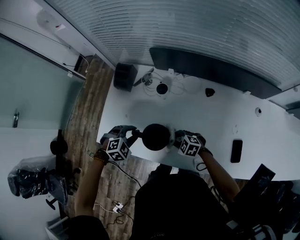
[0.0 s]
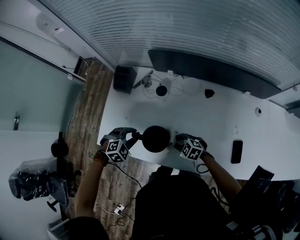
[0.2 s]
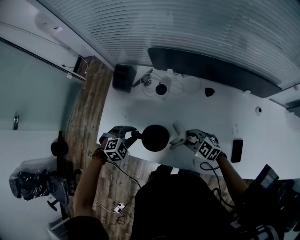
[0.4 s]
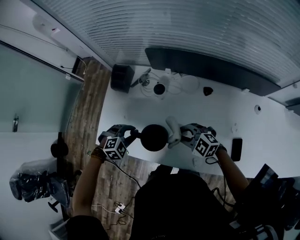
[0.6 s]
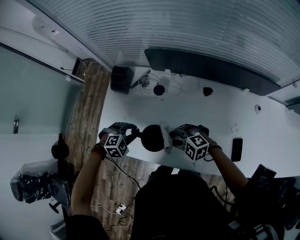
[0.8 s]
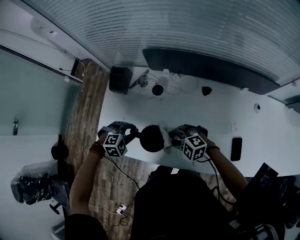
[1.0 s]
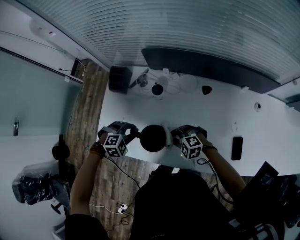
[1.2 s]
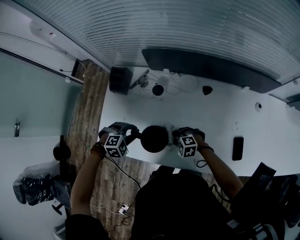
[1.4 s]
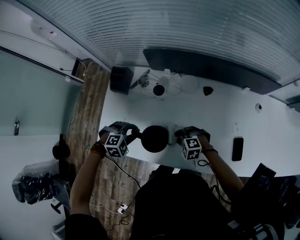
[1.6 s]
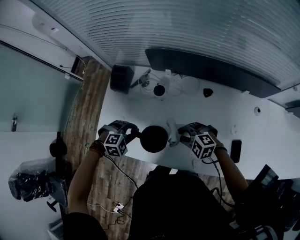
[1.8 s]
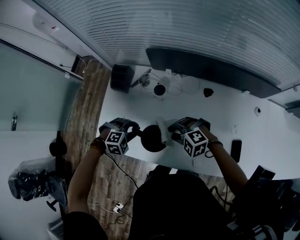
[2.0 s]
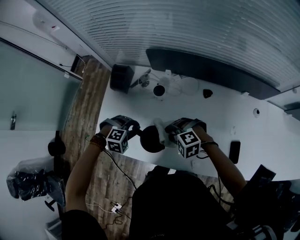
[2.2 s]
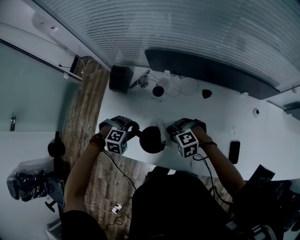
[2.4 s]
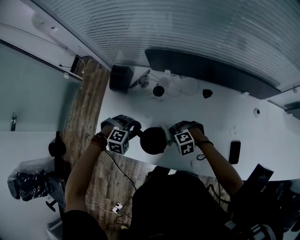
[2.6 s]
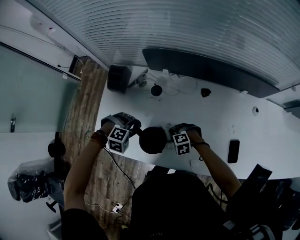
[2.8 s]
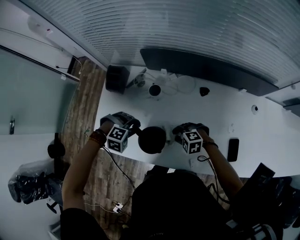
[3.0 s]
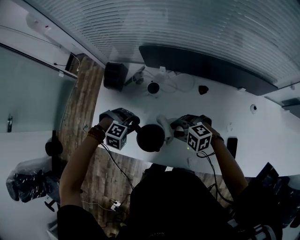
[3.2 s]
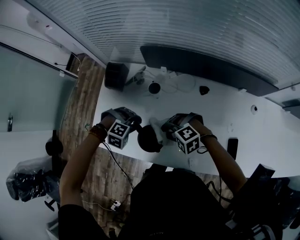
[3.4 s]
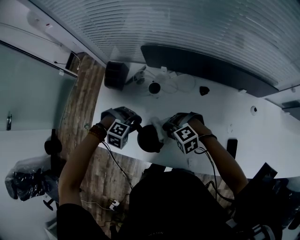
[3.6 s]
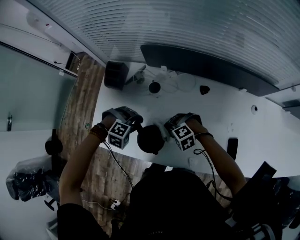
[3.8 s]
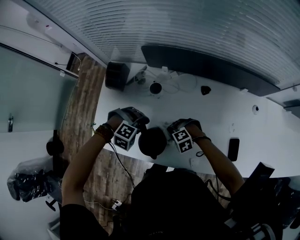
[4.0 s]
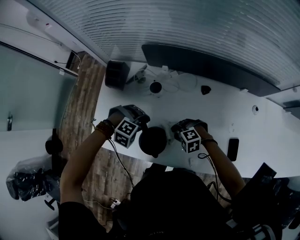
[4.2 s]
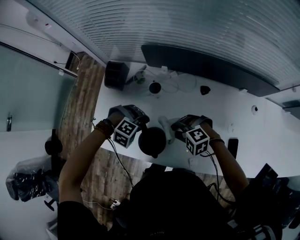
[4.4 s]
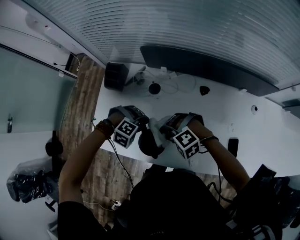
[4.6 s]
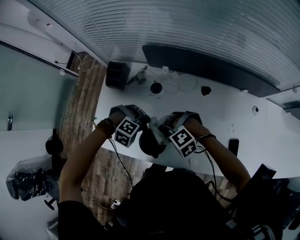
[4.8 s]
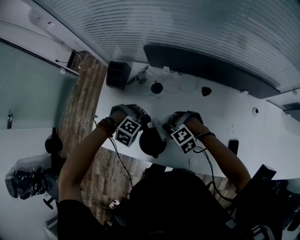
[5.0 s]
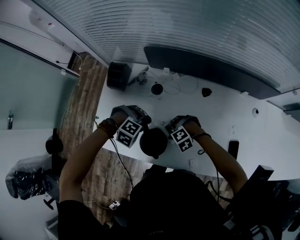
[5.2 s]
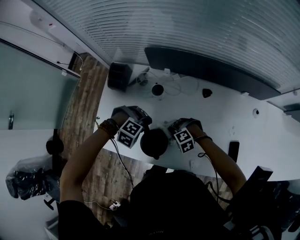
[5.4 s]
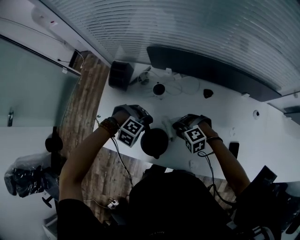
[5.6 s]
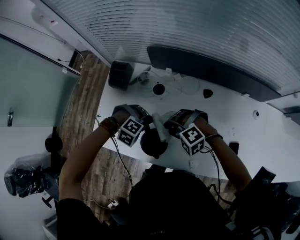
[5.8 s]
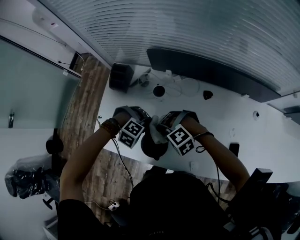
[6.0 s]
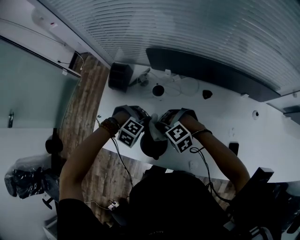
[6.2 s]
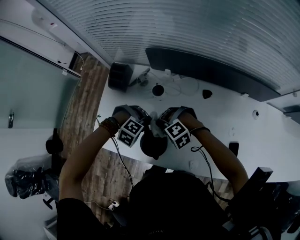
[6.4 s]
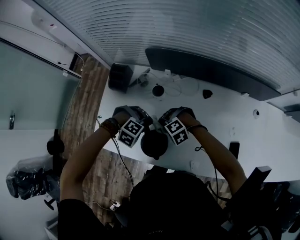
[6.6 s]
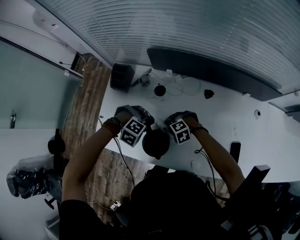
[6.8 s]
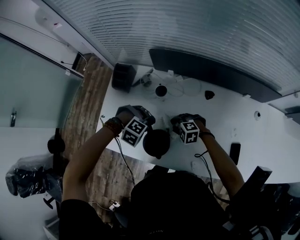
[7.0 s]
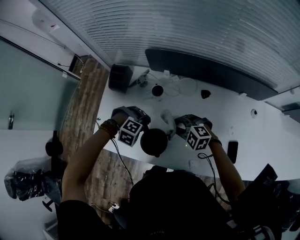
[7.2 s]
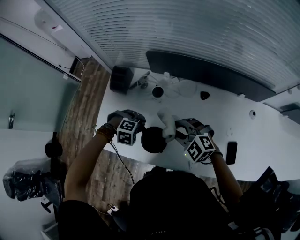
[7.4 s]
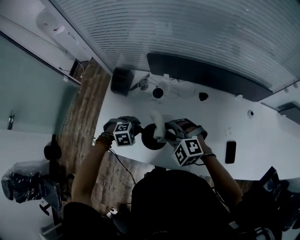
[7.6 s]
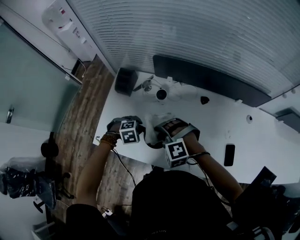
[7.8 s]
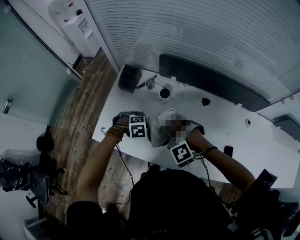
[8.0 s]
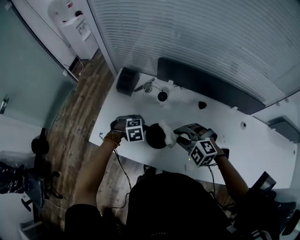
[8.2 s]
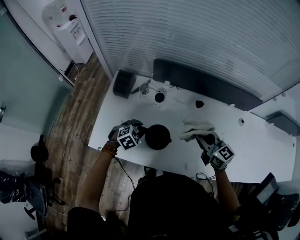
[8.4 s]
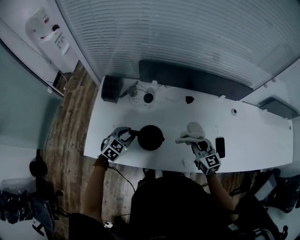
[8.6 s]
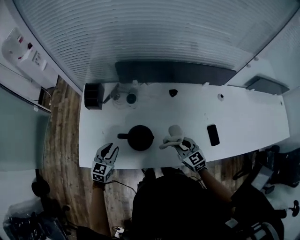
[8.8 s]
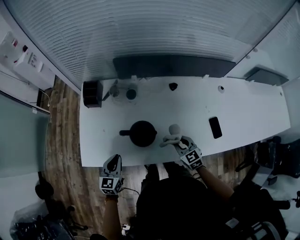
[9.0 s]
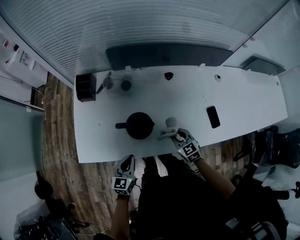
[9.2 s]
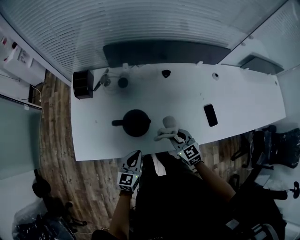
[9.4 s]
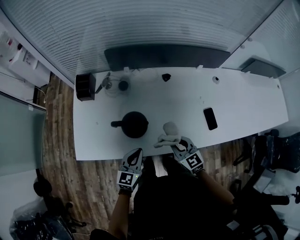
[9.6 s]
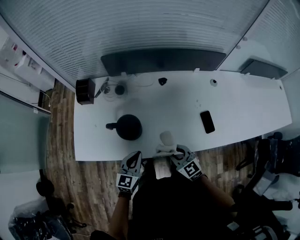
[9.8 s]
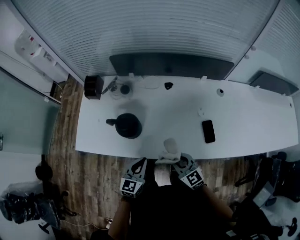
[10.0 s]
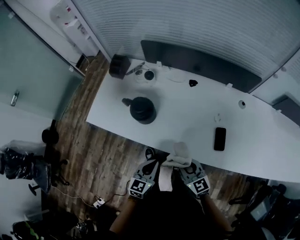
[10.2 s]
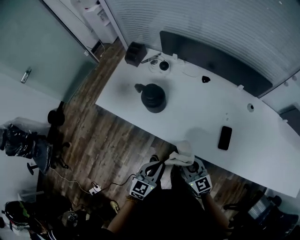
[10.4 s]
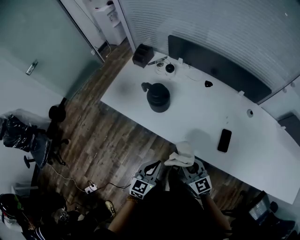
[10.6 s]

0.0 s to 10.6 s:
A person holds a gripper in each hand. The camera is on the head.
0.0 to 1.6 s: The right gripper moves some 10 cm upward and comes back, and changes its angle by approximately 20 degrees.
1.6 to 3.0 s: The right gripper moves up and down over roughly 15 cm, changing direction 2 times.
3.0 to 4.6 s: The right gripper moves up and down over some 15 cm, changing direction 2 times, and changes its angle by about 30 degrees.
4.6 to 6.0 s: The right gripper travels downward and back again, roughly 15 cm each way.
6.0 to 7.6 s: The left gripper changes place by roughly 5 cm, and rotates some 40 degrees. Meanwhile the right gripper goes roughly 10 cm upward, and rotates about 40 degrees.
7.6 to 9.0 s: The left gripper changes place by about 15 cm, and tips its fingers upward by roughly 50 degrees. The right gripper ends up approximately 20 cm from where it was, and twists roughly 50 degrees clockwise, seen from behind.
9.0 to 10.6 s: The left gripper shifts by about 40 cm. The right gripper ends up about 25 cm from where it was, and changes its angle by roughly 30 degrees.

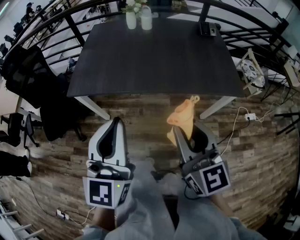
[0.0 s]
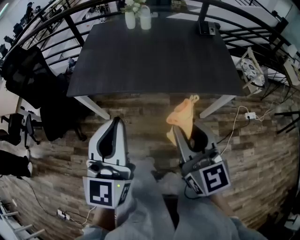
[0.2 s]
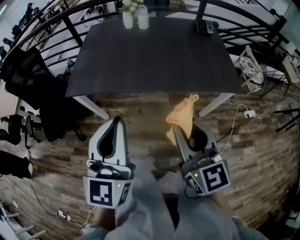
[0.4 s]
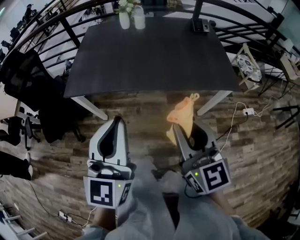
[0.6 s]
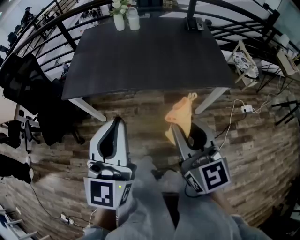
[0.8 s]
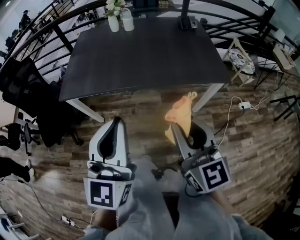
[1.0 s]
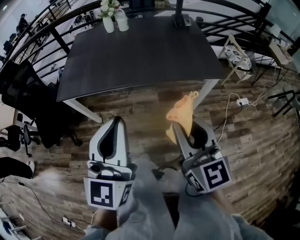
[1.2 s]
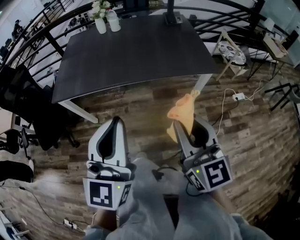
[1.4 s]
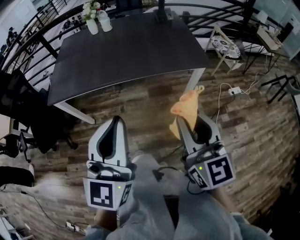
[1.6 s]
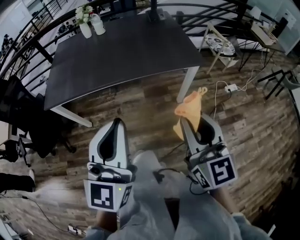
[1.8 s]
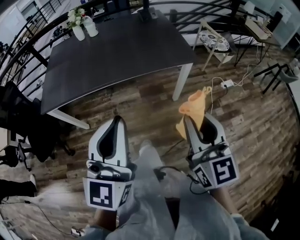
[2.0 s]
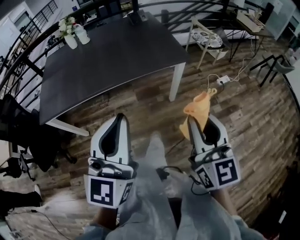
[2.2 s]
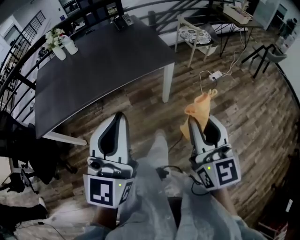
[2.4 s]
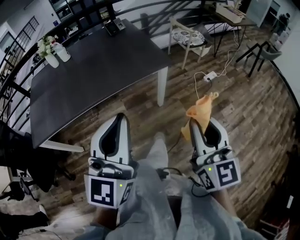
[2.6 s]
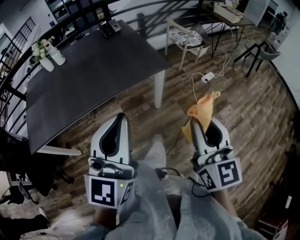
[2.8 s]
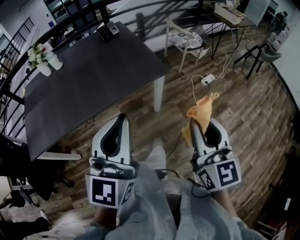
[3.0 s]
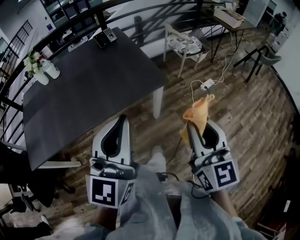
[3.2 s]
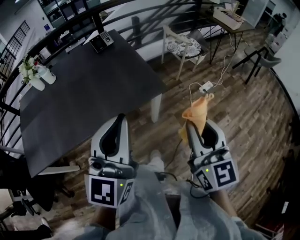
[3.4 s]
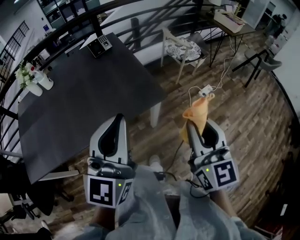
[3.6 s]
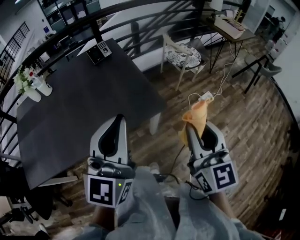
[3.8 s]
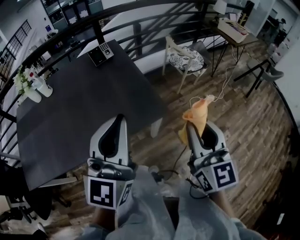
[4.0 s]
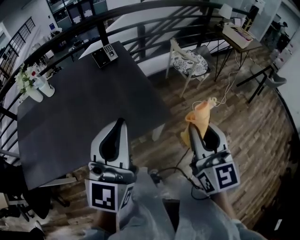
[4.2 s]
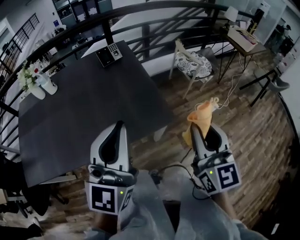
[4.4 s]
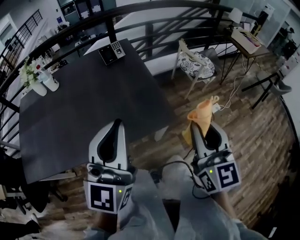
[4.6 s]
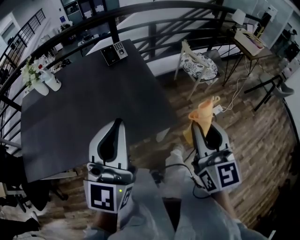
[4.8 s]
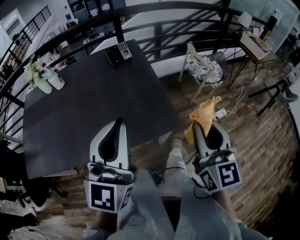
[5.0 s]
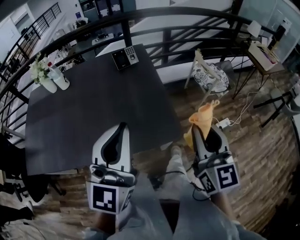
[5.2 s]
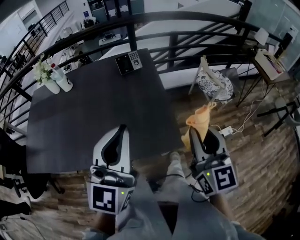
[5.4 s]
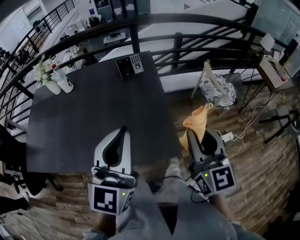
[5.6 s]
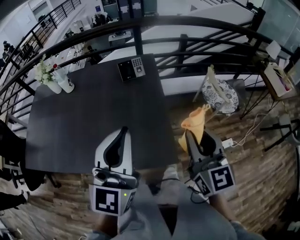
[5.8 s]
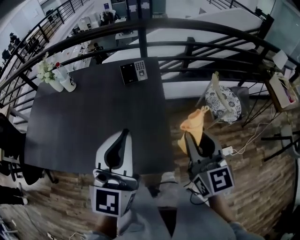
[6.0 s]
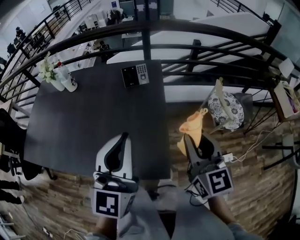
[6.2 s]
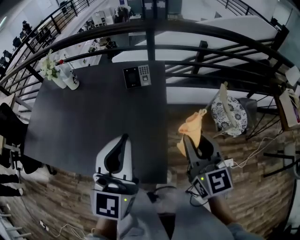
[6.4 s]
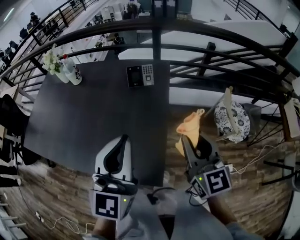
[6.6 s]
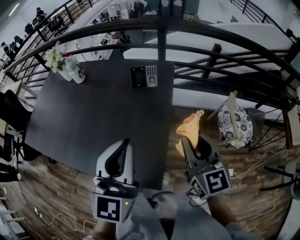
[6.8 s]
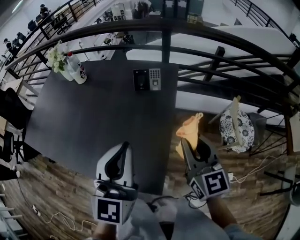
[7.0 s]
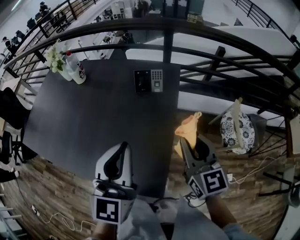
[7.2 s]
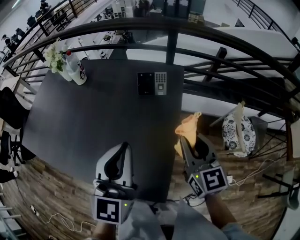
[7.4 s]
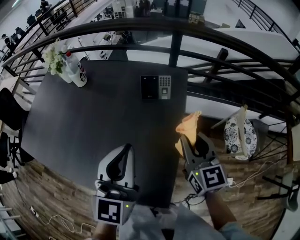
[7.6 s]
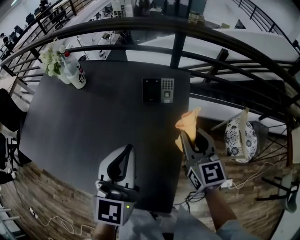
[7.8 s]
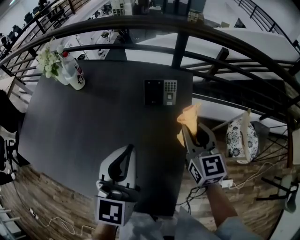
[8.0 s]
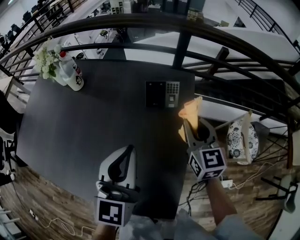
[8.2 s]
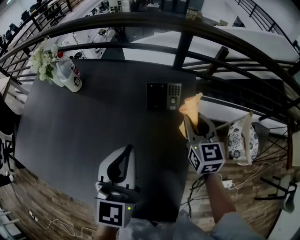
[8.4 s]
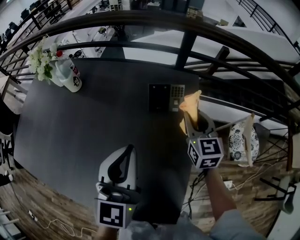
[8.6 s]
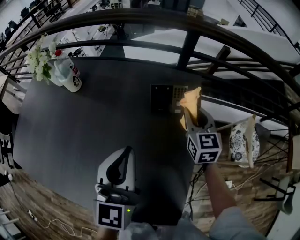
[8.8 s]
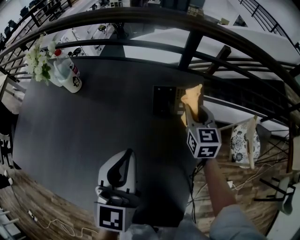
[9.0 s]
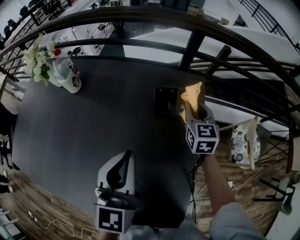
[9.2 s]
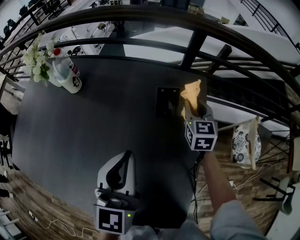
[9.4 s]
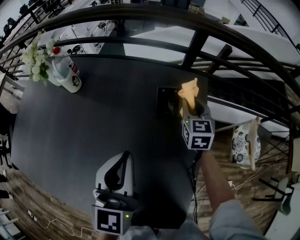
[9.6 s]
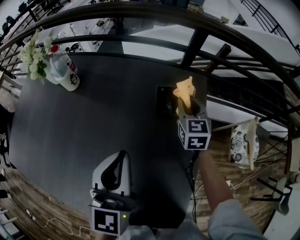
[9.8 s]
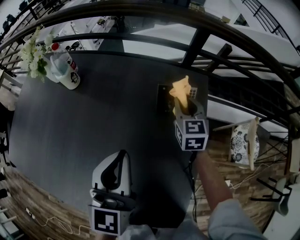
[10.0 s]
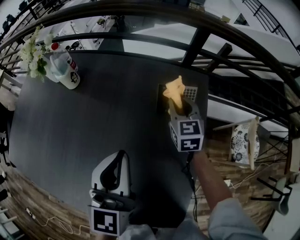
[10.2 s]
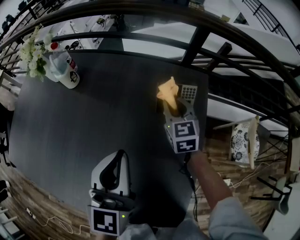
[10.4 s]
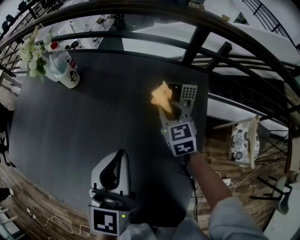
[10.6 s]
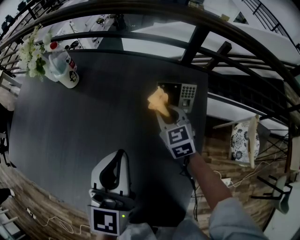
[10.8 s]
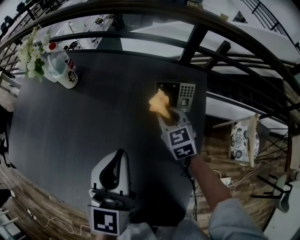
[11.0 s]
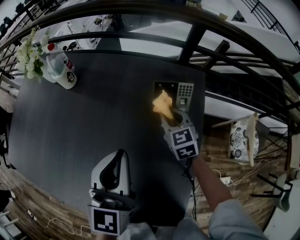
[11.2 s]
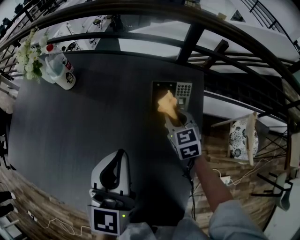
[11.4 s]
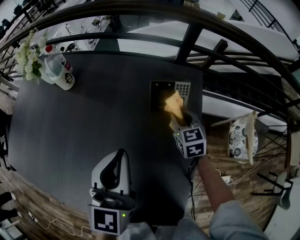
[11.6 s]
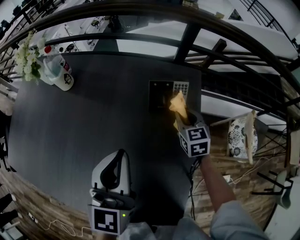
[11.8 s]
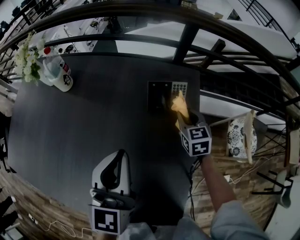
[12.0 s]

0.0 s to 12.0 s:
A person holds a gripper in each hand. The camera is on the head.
0.0 to 1.6 s: The two grippers go roughly 20 cm to the right and backward.
1.6 to 3.0 s: The grippers both shift to the right and forward by about 20 cm. The right gripper swivels some 20 degrees, while the left gripper changes its angle by roughly 20 degrees.
3.0 to 4.4 s: Both grippers move forward, roughly 25 cm.
4.4 to 6.0 s: Both grippers travel together forward, some 20 cm. The right gripper rotates some 20 degrees; the left gripper changes its angle by roughly 20 degrees.
6.0 to 7.6 s: The right gripper heads forward, covering about 20 cm; the left gripper moves forward and downward, some 15 cm.
7.6 to 9.0 s: The left gripper moves forward, downward and to the left, approximately 15 cm. Meanwhile the right gripper is displaced forward and downward by approximately 25 cm.
9.0 to 10.4 s: The right gripper moves to the left, approximately 10 cm.
10.4 to 12.0 s: The right gripper shifts approximately 10 cm to the right.

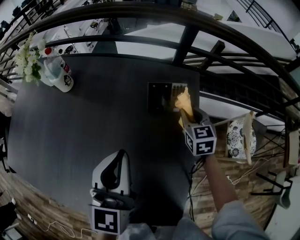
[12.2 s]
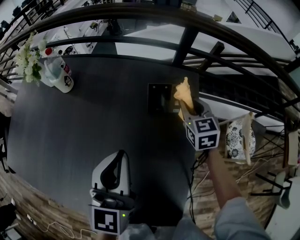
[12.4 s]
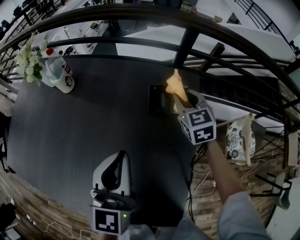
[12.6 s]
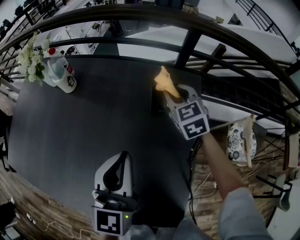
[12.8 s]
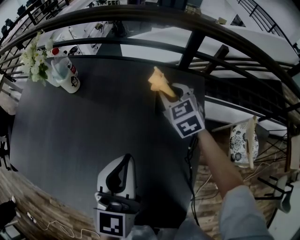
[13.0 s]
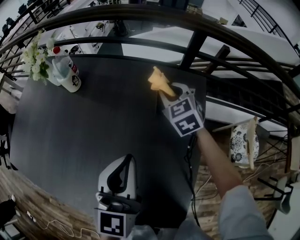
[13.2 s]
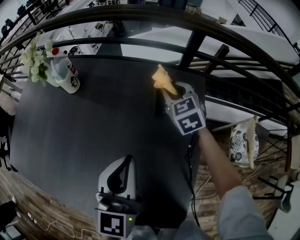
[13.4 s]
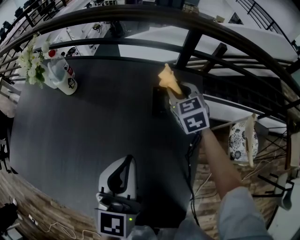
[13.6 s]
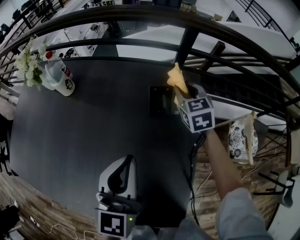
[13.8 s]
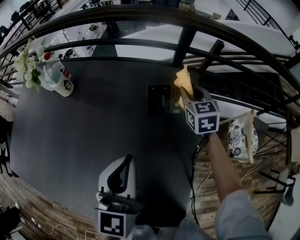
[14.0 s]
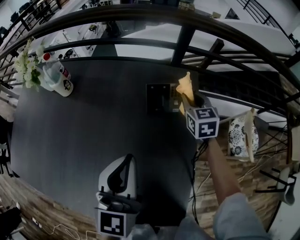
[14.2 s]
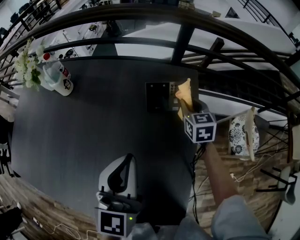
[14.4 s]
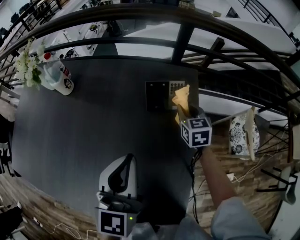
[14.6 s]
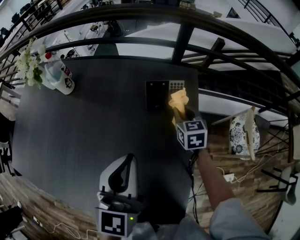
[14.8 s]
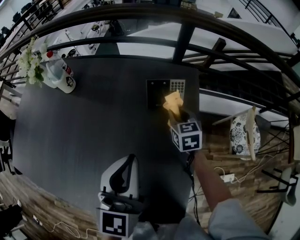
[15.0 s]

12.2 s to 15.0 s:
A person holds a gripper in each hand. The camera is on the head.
12.2 to 13.6 s: The right gripper moves forward, to the left and upward, approximately 15 cm.
13.6 to 15.0 s: The right gripper goes about 15 cm backward and downward, and turns by about 20 degrees.
